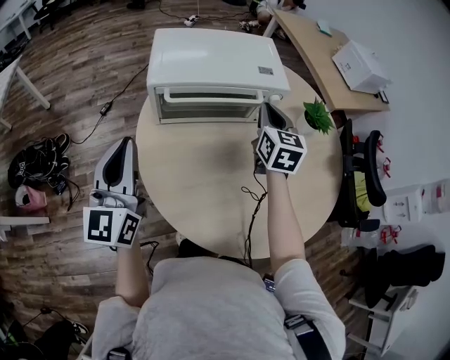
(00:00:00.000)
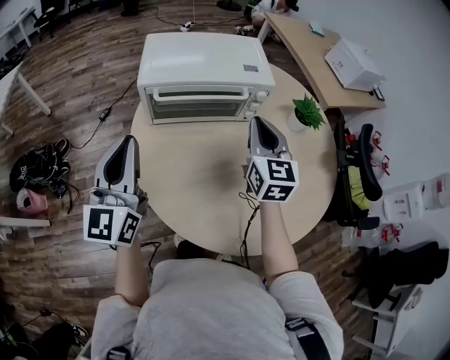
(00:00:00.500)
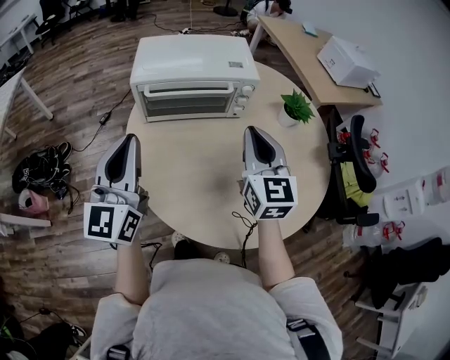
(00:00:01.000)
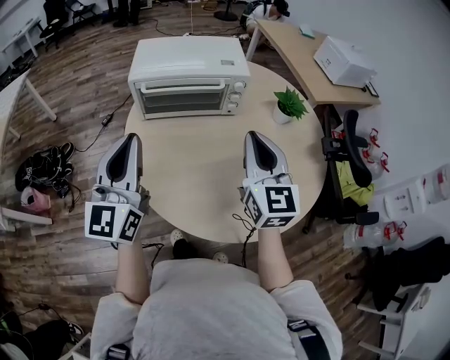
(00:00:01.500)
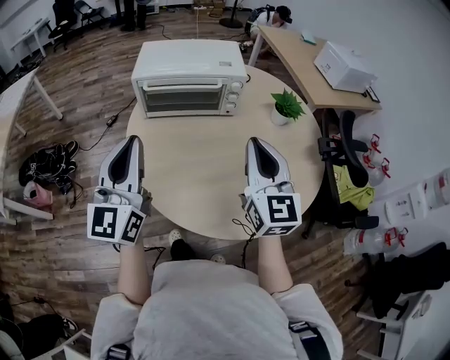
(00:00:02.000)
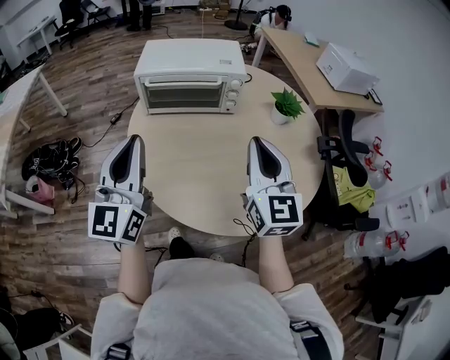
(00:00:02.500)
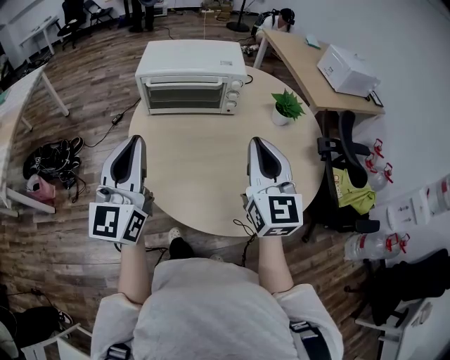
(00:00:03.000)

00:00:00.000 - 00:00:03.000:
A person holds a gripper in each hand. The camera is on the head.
00:00:00.000 - 00:00:01.500: The right gripper shifts approximately 25 cm backward and upward. The left gripper moves to the right, backward and upward, approximately 15 cm.
00:00:01.500 - 00:00:03.000: The two grippers go some 5 cm backward.

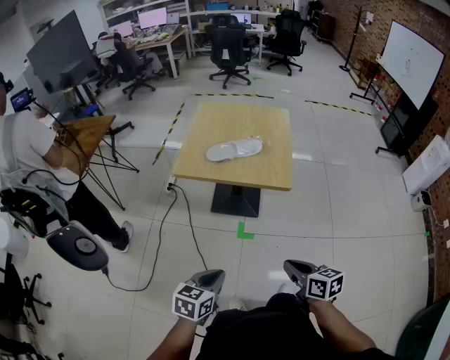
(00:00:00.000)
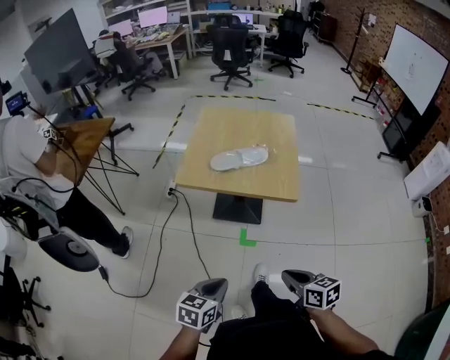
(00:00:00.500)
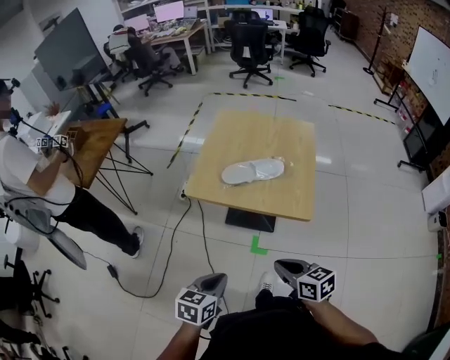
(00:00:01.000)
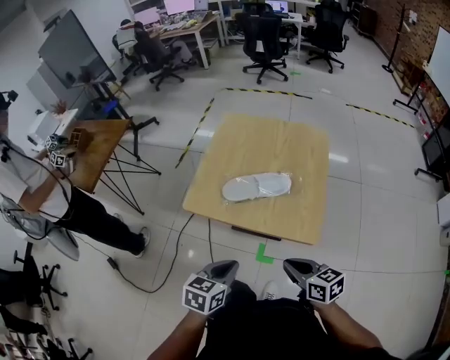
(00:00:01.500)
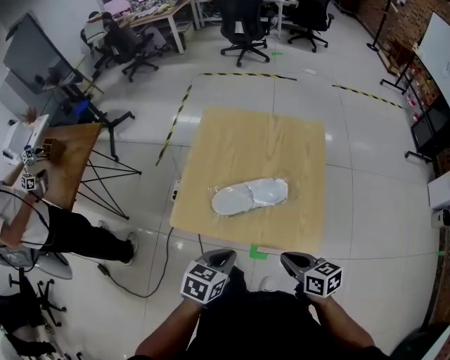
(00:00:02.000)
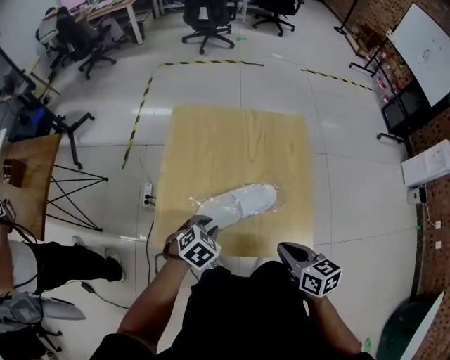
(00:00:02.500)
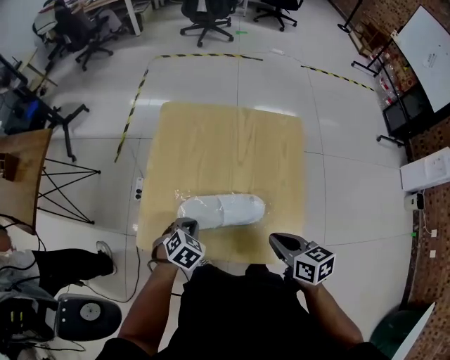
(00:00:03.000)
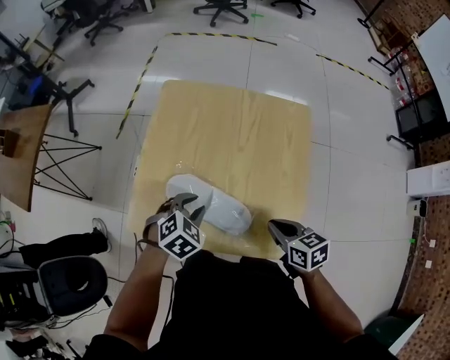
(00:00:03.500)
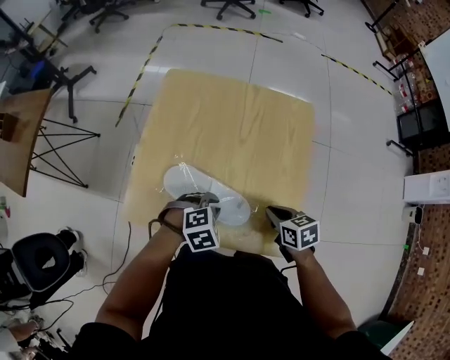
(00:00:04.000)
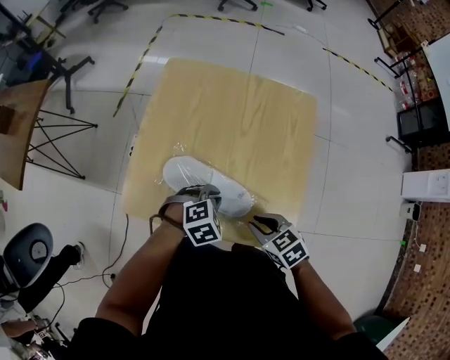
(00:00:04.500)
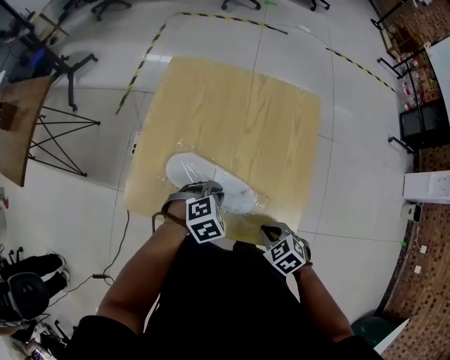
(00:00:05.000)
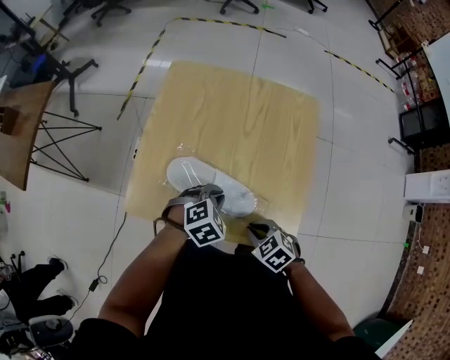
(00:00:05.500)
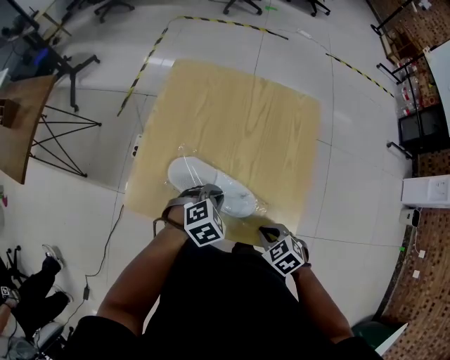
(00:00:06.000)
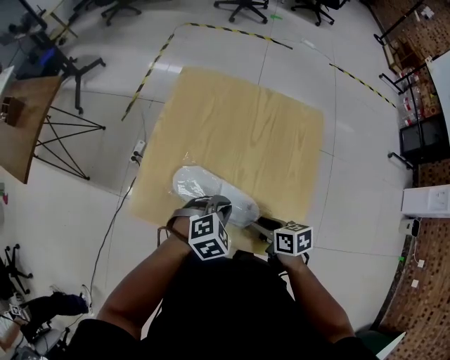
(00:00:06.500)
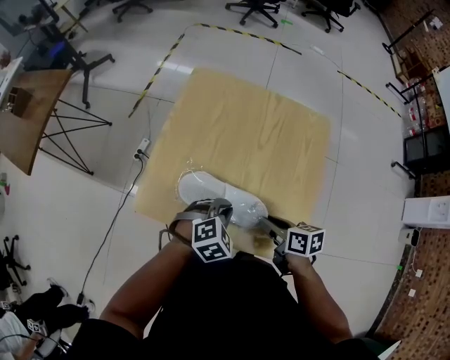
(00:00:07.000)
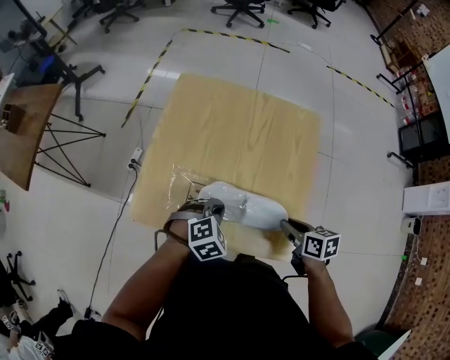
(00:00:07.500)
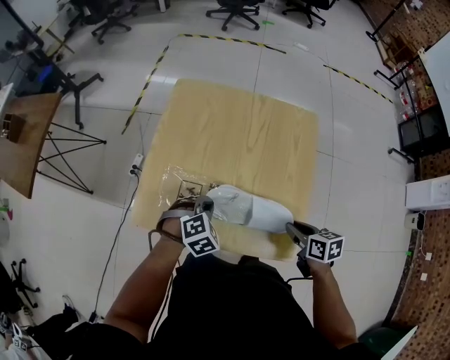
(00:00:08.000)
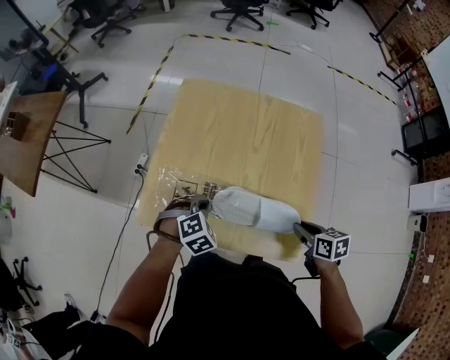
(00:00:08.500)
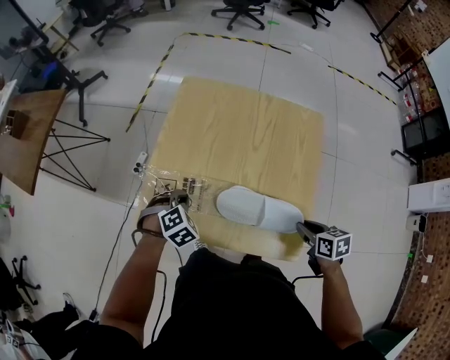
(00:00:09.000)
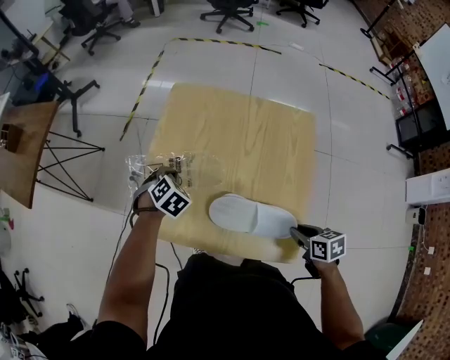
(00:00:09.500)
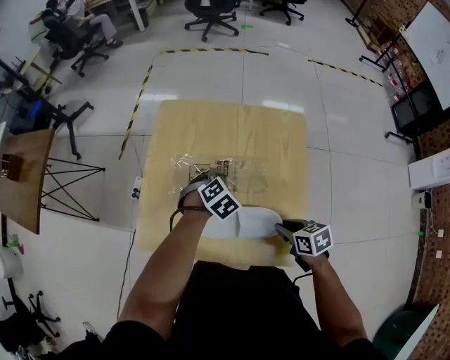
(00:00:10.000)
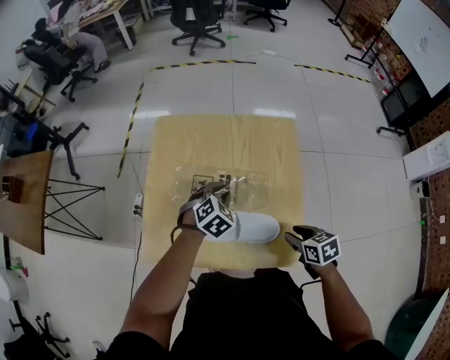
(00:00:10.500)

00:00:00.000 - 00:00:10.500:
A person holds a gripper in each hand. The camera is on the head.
00:00:00.000 - 00:00:02.000: The two grippers go roughly 35 cm forward.
00:00:02.000 - 00:00:04.000: Both grippers travel together forward, downward and to the right, roughly 20 cm. The left gripper rotates around the line of its fingers by some 50 degrees, clockwise from behind, and opens up.
00:00:04.000 - 00:00:06.500: The right gripper travels to the left by approximately 5 cm, goes backward and returns, approximately 10 cm each way, and opens its fingers.
00:00:06.500 - 00:00:08.500: The right gripper travels to the right by about 10 cm. Meanwhile the left gripper shifts approximately 10 cm to the left.
00:00:08.500 - 00:00:10.500: The left gripper shifts some 15 cm to the right and forward.

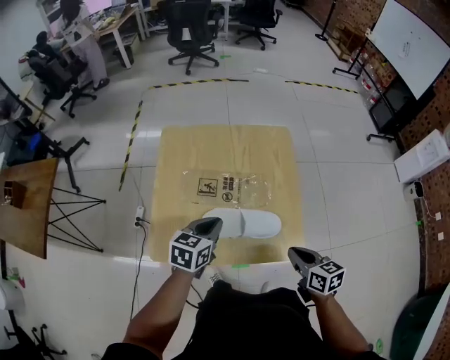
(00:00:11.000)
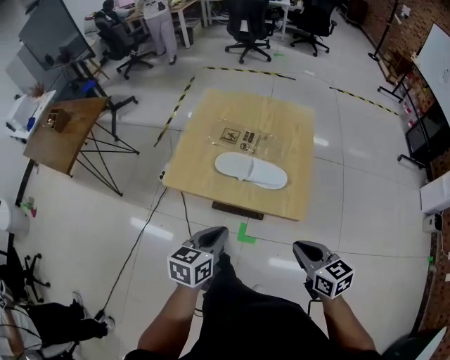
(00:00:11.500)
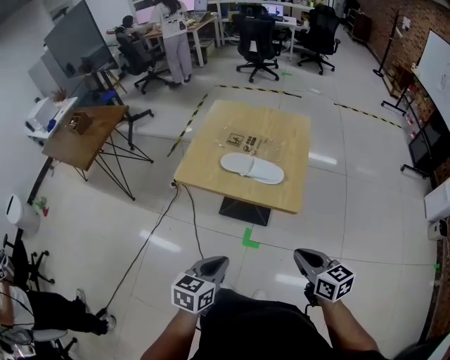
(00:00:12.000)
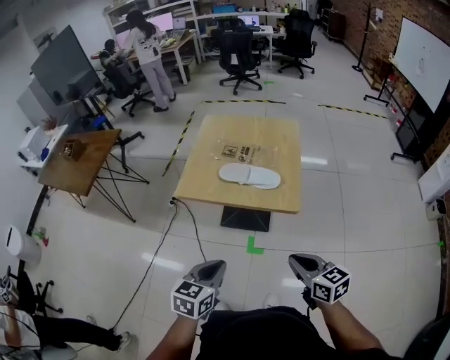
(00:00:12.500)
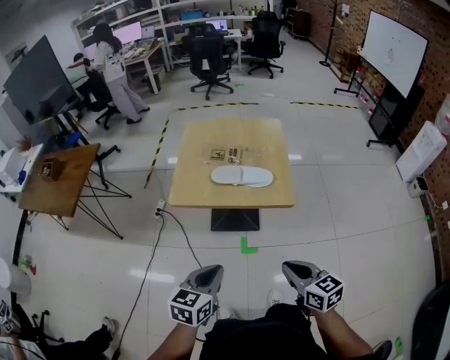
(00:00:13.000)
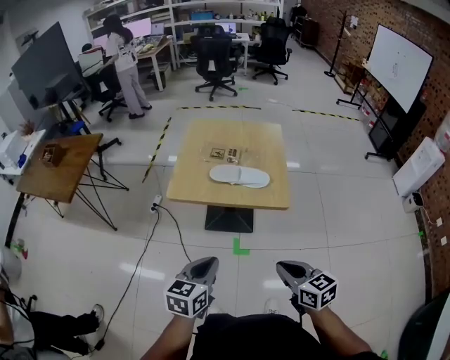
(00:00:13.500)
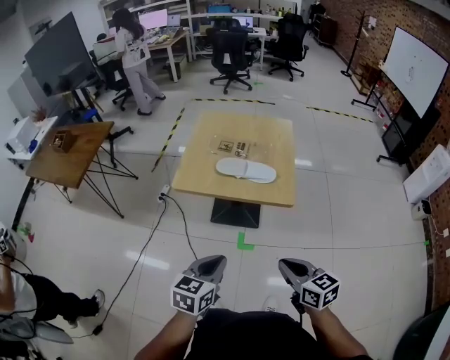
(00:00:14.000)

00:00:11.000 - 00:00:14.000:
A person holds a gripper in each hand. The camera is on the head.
00:00:11.000 - 00:00:12.500: The left gripper goes some 40 cm backward. The right gripper shifts about 25 cm backward, and rotates roughly 20 degrees.
00:00:12.500 - 00:00:14.000: The right gripper shifts by some 5 cm.

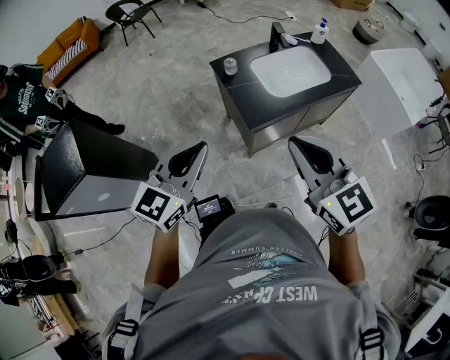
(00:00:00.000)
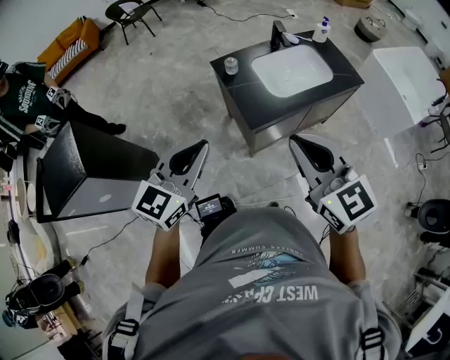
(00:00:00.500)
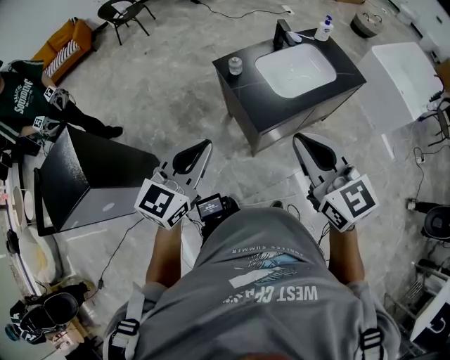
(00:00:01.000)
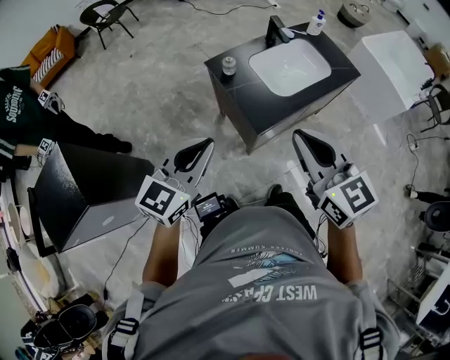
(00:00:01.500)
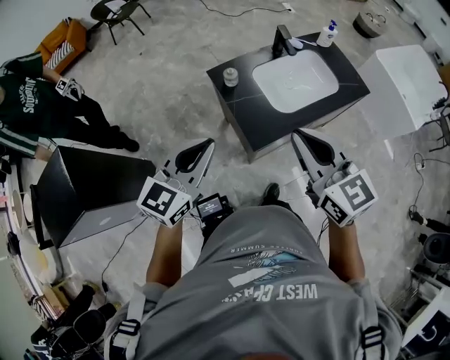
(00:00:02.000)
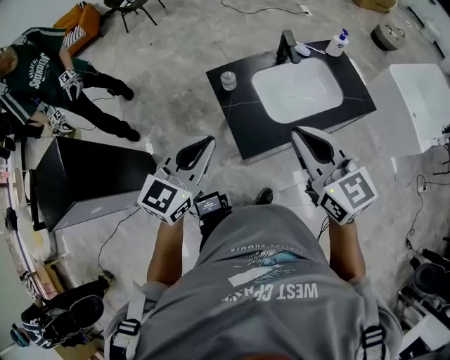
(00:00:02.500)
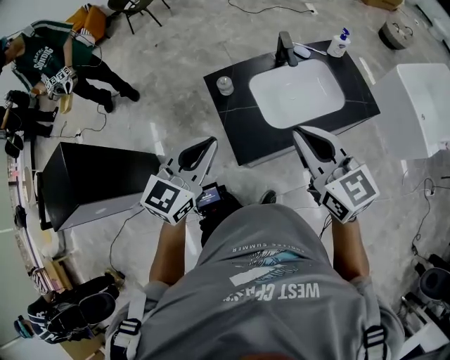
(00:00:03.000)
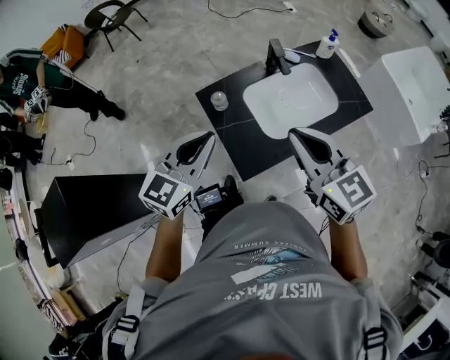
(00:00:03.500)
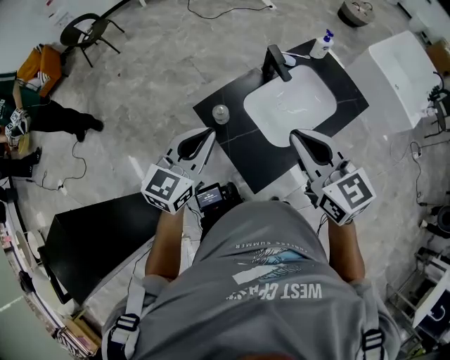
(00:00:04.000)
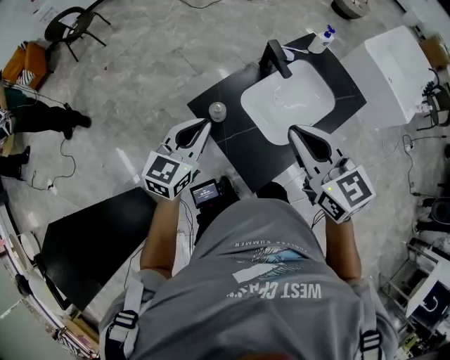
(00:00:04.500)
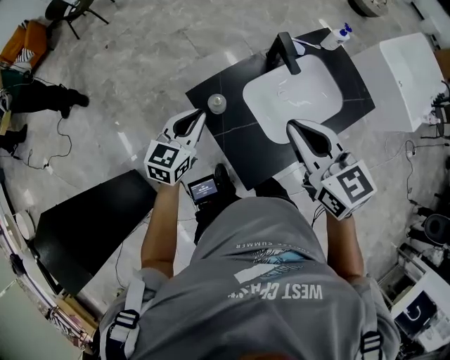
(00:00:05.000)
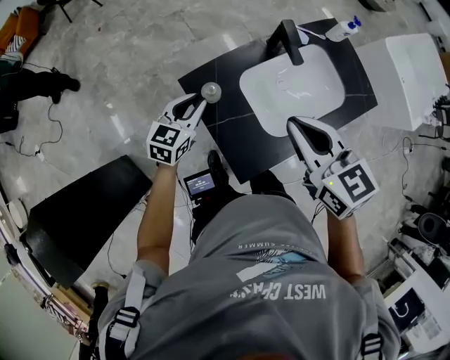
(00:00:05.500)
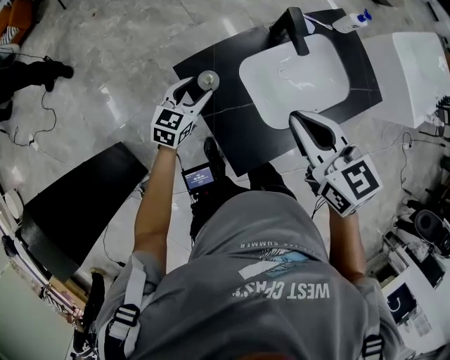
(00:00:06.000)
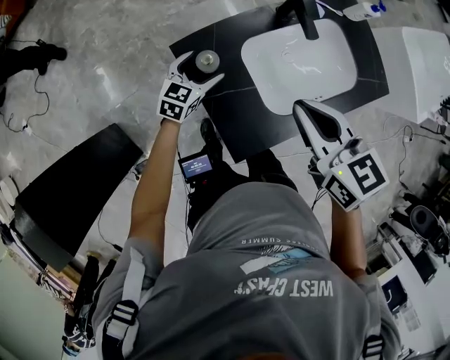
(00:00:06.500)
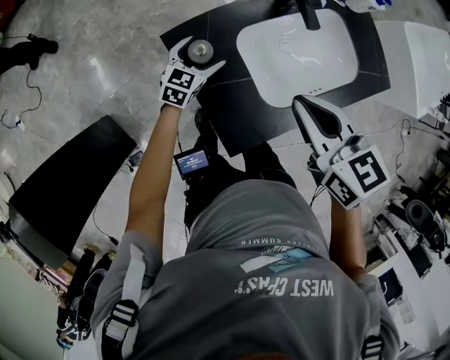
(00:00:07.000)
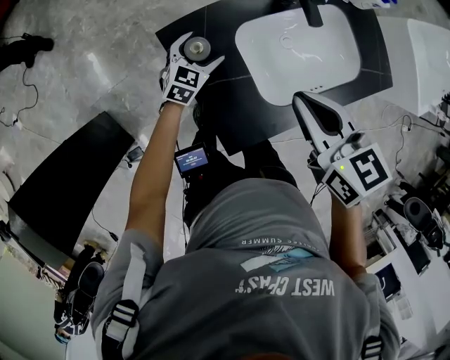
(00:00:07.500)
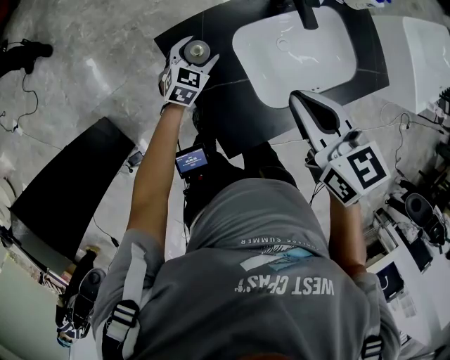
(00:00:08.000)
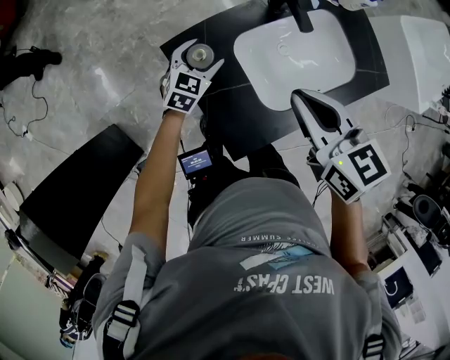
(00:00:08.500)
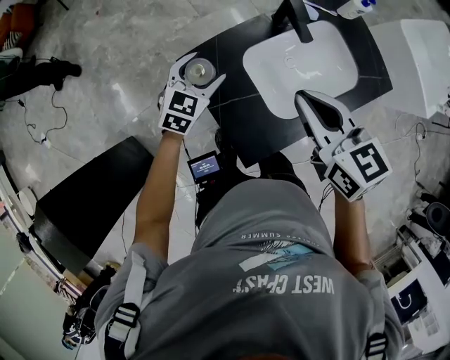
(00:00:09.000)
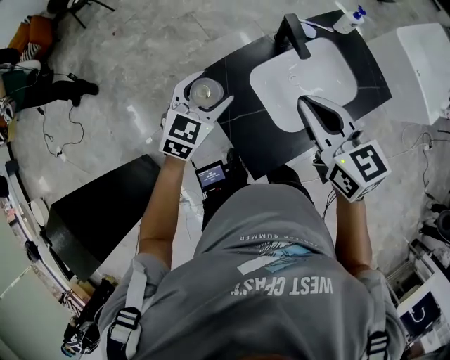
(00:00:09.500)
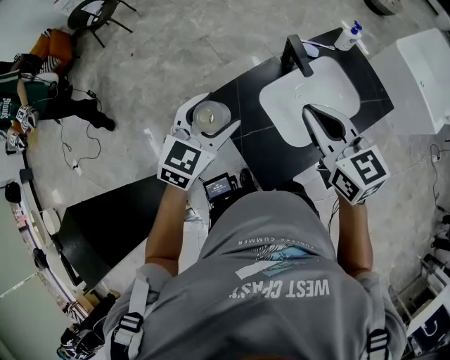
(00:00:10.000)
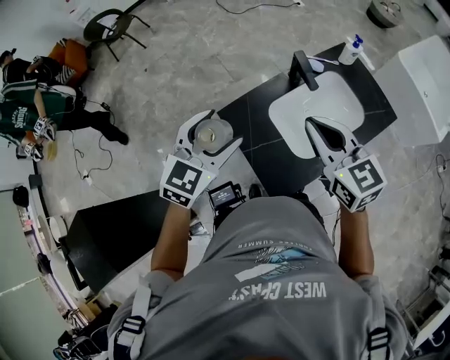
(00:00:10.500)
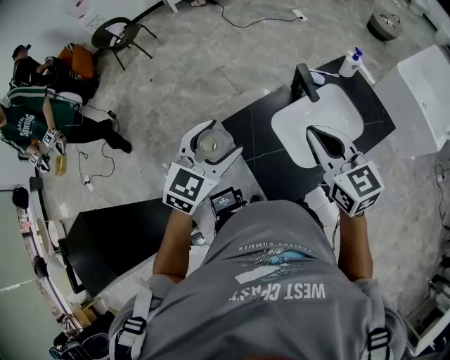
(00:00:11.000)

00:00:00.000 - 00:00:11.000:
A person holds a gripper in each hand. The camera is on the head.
00:00:00.000 - 00:00:02.000: The two grippers go about 15 cm forward.
00:00:02.000 - 00:00:03.500: The two grippers go approximately 15 cm forward and to the right.
00:00:03.500 - 00:00:05.500: The right gripper is displaced forward, downward and to the left by approximately 15 cm; the left gripper moves downward and forward, roughly 30 cm.
00:00:05.500 - 00:00:07.500: The left gripper moves downward, about 15 cm, and opens its fingers. The right gripper moves downward, roughly 10 cm.
00:00:07.500 - 00:00:09.000: The right gripper goes roughly 5 cm upward. Meanwhile the left gripper heads upward, covering roughly 15 cm.
00:00:09.000 - 00:00:11.000: The right gripper is displaced upward by some 5 cm. The left gripper is displaced upward and backward by about 20 cm.
